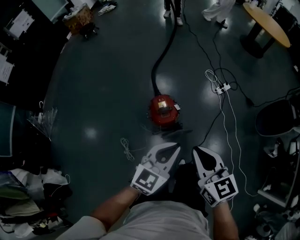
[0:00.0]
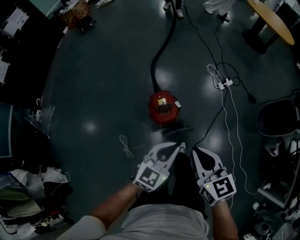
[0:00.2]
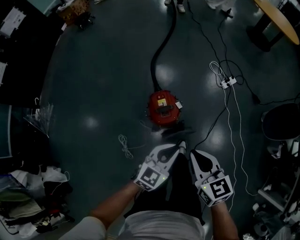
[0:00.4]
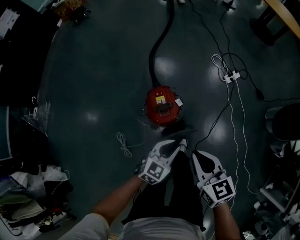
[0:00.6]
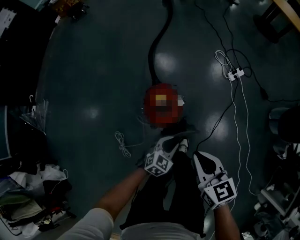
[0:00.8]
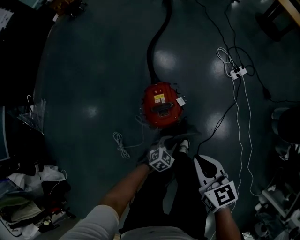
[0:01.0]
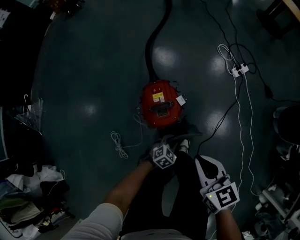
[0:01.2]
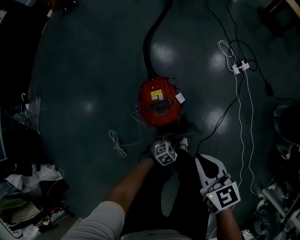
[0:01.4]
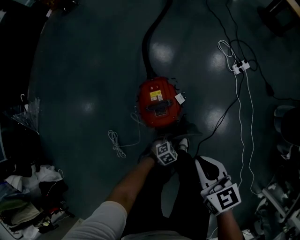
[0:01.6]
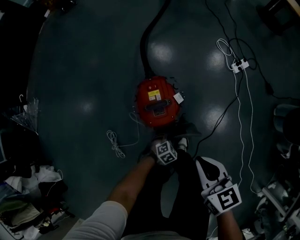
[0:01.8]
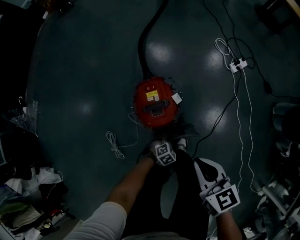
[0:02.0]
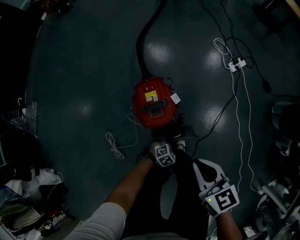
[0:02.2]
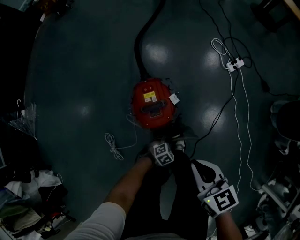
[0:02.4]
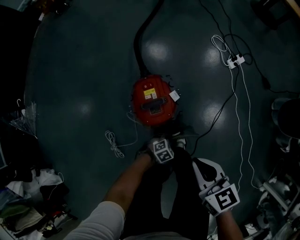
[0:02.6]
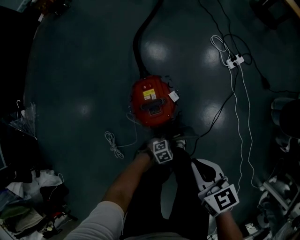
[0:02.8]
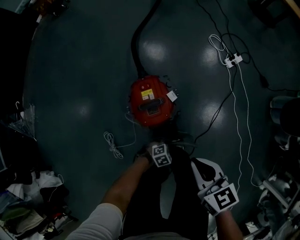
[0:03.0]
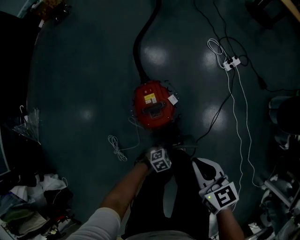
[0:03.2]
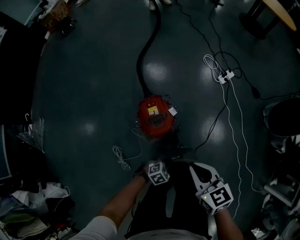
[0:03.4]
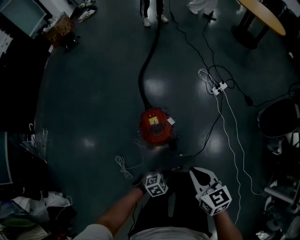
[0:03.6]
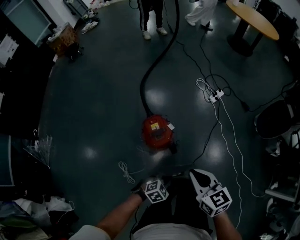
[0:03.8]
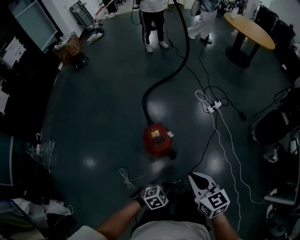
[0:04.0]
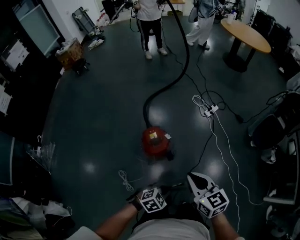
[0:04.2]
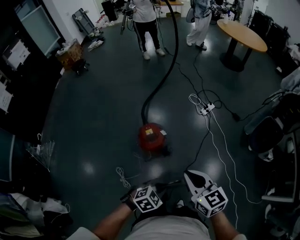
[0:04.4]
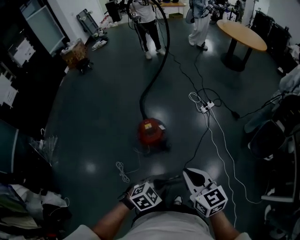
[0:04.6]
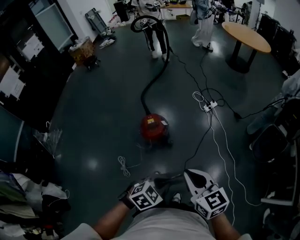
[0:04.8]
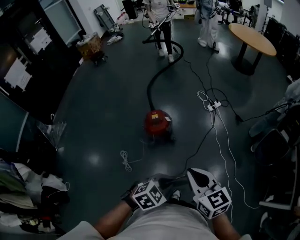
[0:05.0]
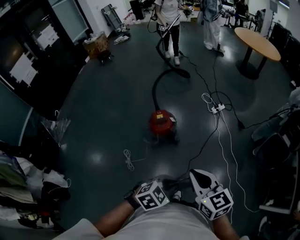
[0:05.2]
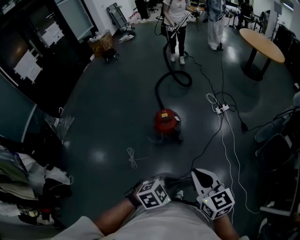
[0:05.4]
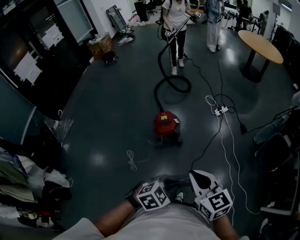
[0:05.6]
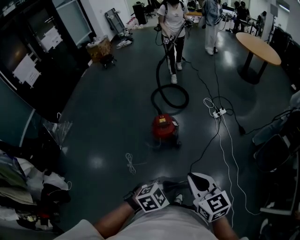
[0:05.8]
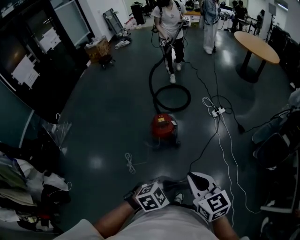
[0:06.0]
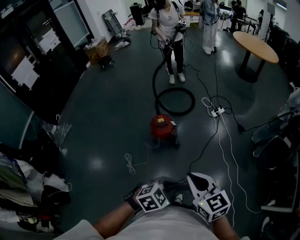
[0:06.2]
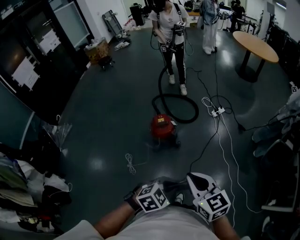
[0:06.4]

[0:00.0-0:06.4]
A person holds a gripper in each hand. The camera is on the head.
0:00.0 to 0:01.6: The right gripper is displaced downward by about 30 cm; the left gripper shifts approximately 60 cm downward, angles its fingers downward, by some 50 degrees, and opens its fingers.
0:01.6 to 0:03.2: The left gripper shifts approximately 5 cm upward.
0:03.2 to 0:04.8: The right gripper is displaced upward by roughly 35 cm; the left gripper moves upward, roughly 50 cm.
0:04.8 to 0:06.4: The two grippers go approximately 10 cm backward.

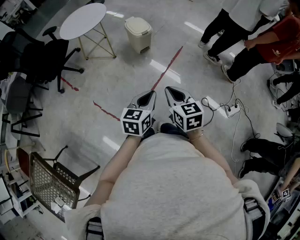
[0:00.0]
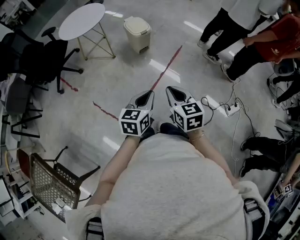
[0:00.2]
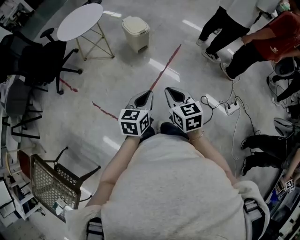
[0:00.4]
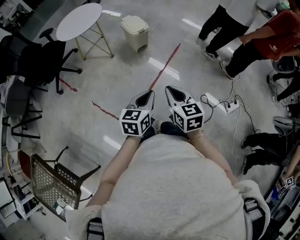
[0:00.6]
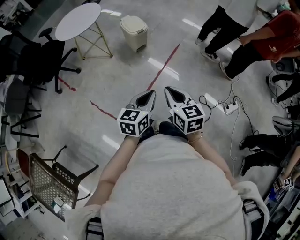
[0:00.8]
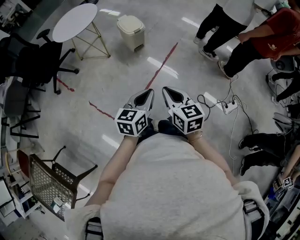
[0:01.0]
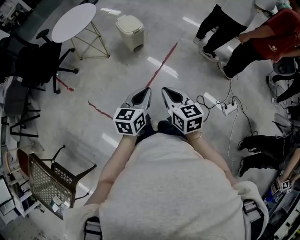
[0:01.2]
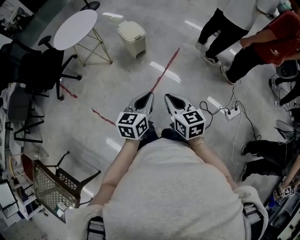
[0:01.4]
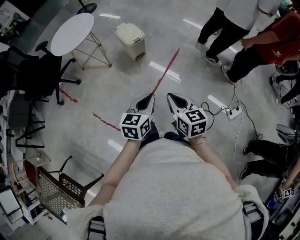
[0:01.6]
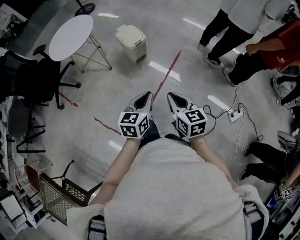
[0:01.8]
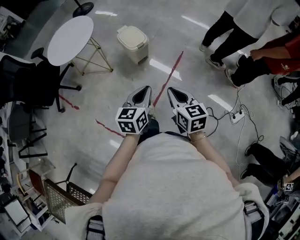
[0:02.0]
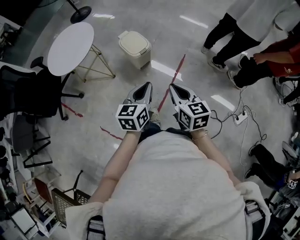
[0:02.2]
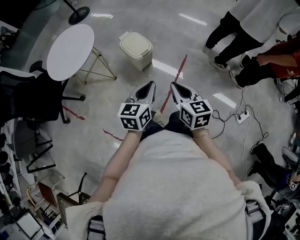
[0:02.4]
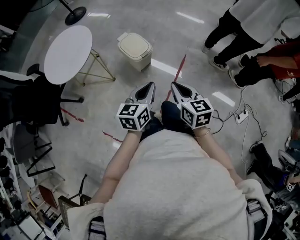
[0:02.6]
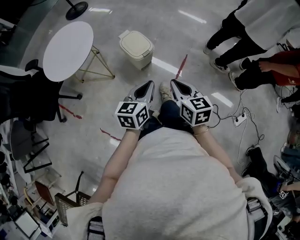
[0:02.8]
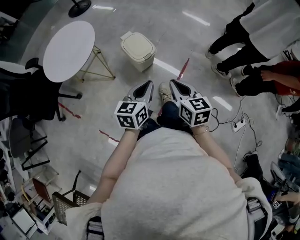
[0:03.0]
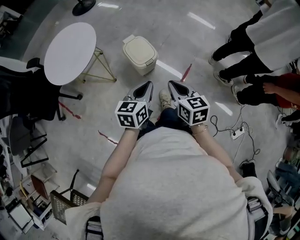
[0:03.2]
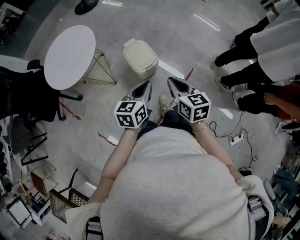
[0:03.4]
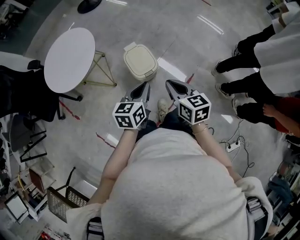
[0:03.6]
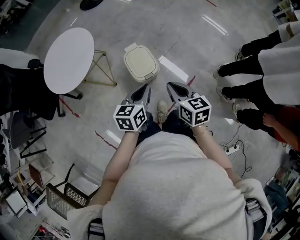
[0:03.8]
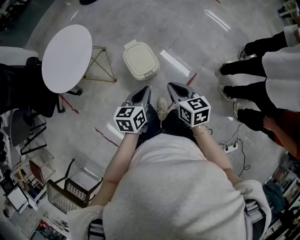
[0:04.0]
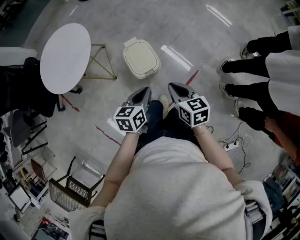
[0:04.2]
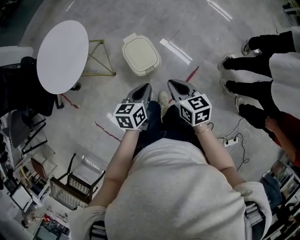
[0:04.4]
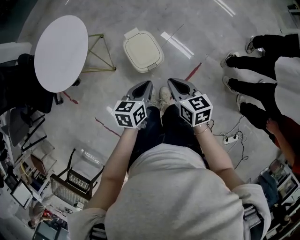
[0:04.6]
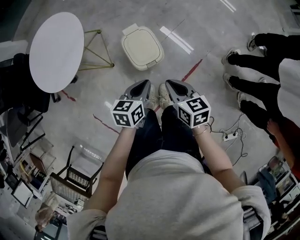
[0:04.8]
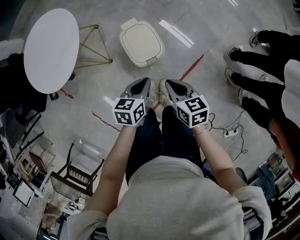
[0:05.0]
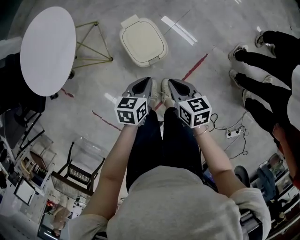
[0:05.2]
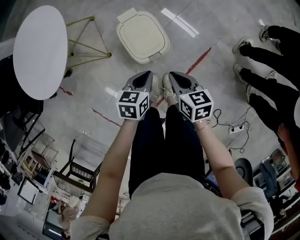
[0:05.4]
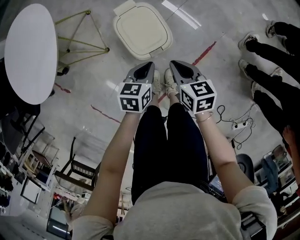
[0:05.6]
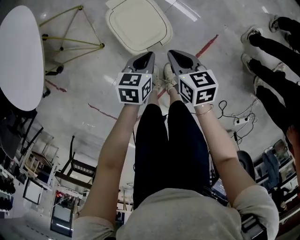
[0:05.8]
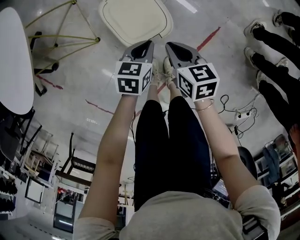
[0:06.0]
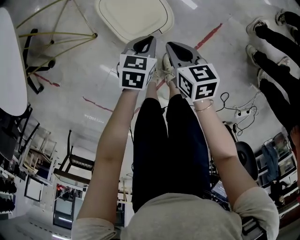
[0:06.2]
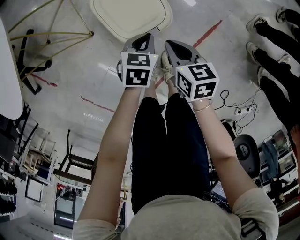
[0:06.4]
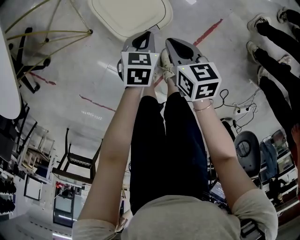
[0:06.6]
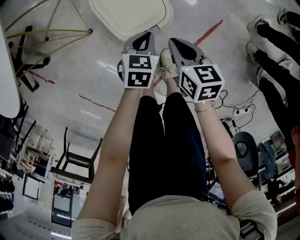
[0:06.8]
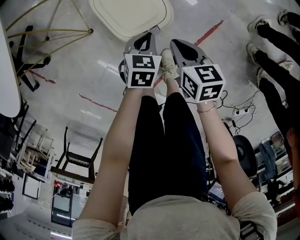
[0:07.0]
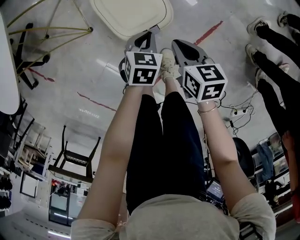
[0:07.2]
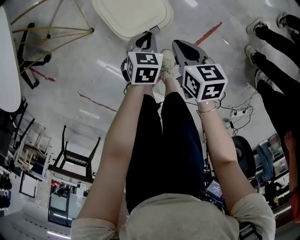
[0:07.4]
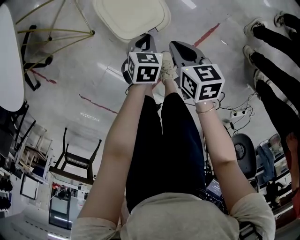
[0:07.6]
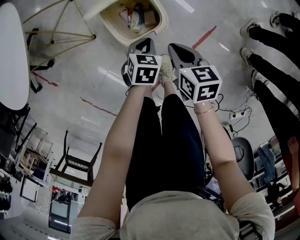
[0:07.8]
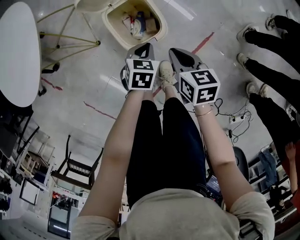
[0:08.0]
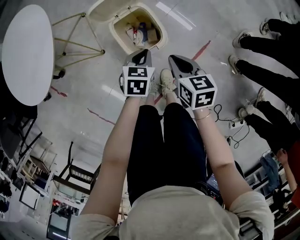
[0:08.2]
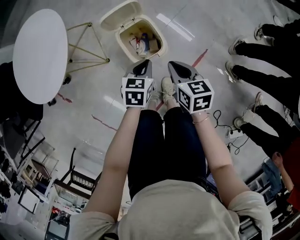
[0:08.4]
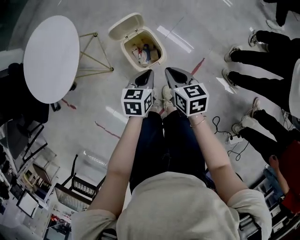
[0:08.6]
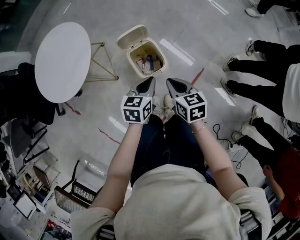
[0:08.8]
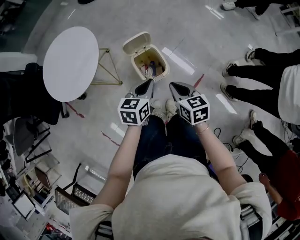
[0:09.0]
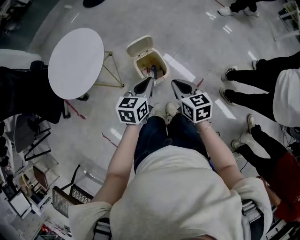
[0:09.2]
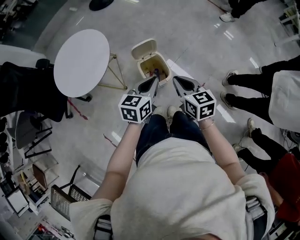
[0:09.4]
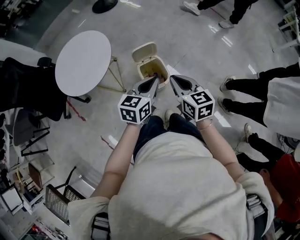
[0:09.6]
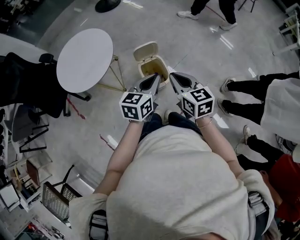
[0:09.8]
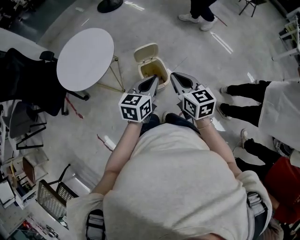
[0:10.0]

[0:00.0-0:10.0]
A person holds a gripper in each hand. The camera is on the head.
0:00.0 to 0:01.4: The left gripper travels forward and to the right by roughly 10 cm. The right gripper goes roughly 5 cm to the right.
0:01.4 to 0:02.8: The two grippers go some 35 cm forward.
0:02.8 to 0:04.2: Both grippers travel together forward, some 25 cm. The left gripper rotates some 20 degrees, while the right gripper rotates roughly 20 degrees.
0:04.2 to 0:05.8: Both grippers travel together downward, roughly 30 cm.
0:05.8 to 0:07.2: The right gripper shifts some 5 cm downward; the left gripper moves downward, about 10 cm.
0:07.2 to 0:08.6: The two grippers go some 25 cm upward.
0:08.6 to 0:10.0: The grippers both shift upward by about 25 cm. The right gripper turns by approximately 20 degrees. The left gripper swivels about 20 degrees.

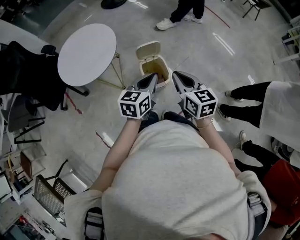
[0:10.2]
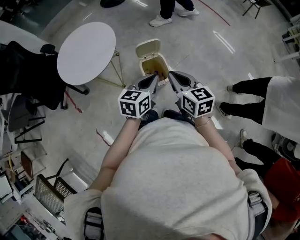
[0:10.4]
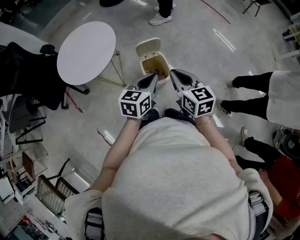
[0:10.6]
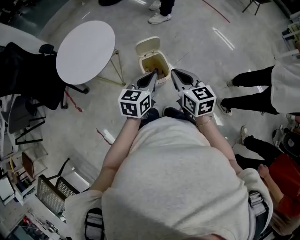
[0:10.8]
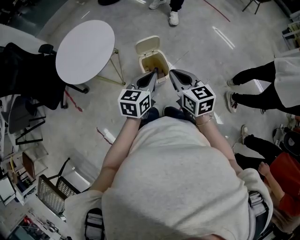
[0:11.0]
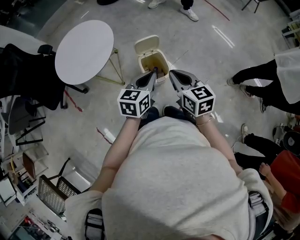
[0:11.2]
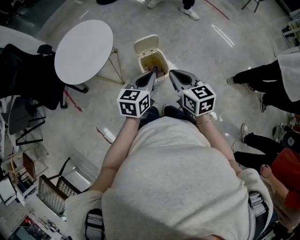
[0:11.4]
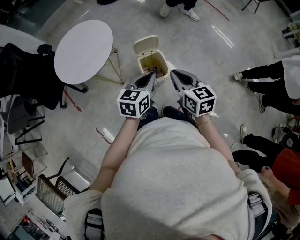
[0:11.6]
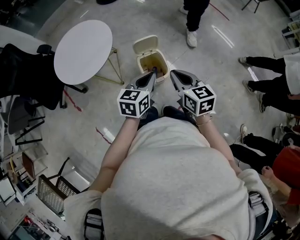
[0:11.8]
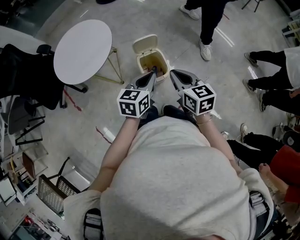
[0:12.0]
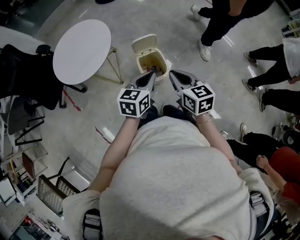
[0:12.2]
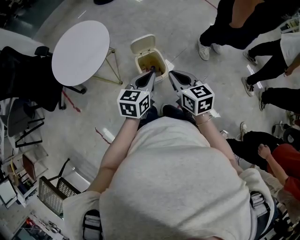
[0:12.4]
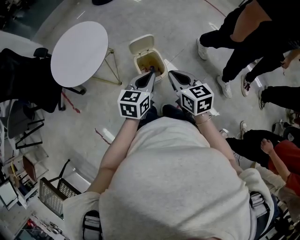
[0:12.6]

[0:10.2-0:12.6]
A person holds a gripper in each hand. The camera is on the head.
0:10.2 to 0:12.6: There are only small adjustments of the grippers.

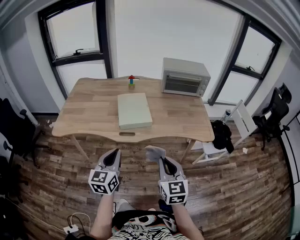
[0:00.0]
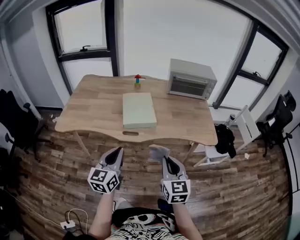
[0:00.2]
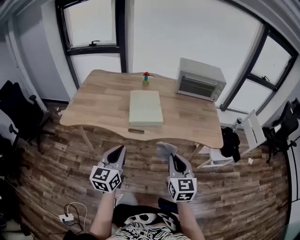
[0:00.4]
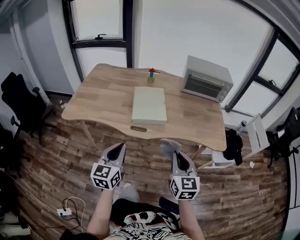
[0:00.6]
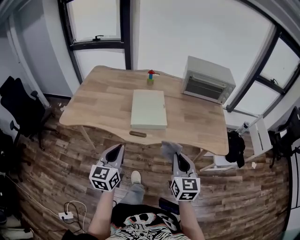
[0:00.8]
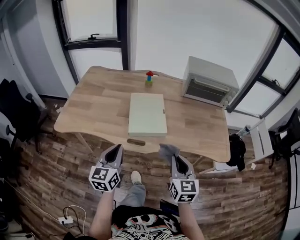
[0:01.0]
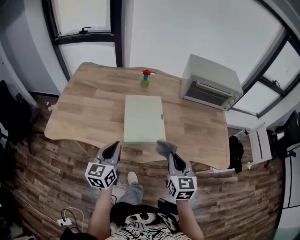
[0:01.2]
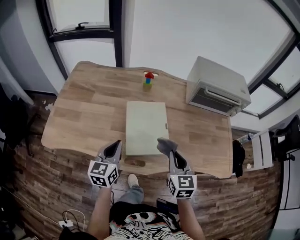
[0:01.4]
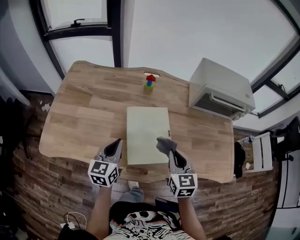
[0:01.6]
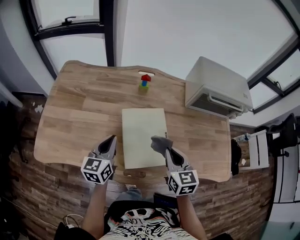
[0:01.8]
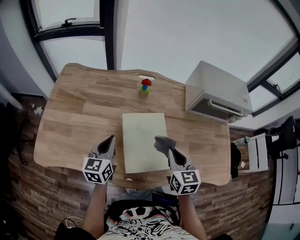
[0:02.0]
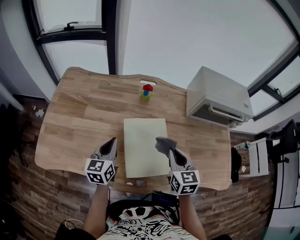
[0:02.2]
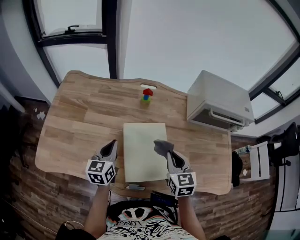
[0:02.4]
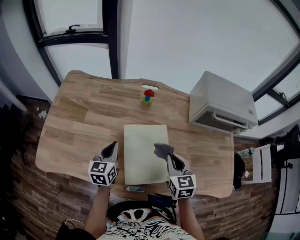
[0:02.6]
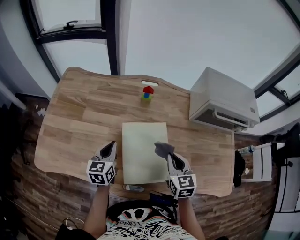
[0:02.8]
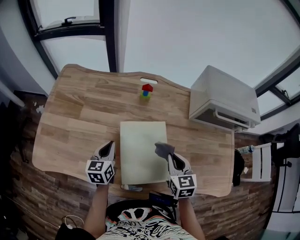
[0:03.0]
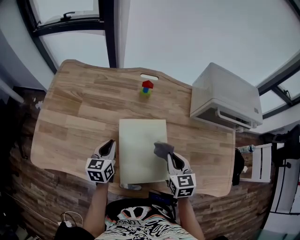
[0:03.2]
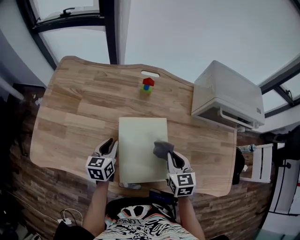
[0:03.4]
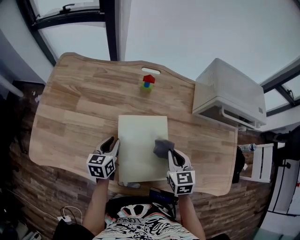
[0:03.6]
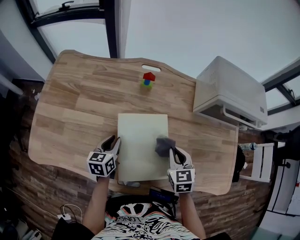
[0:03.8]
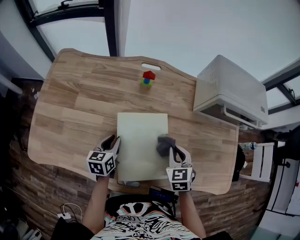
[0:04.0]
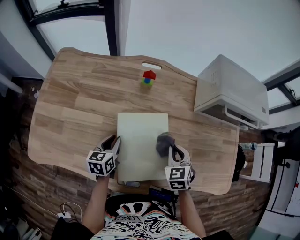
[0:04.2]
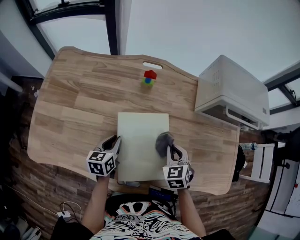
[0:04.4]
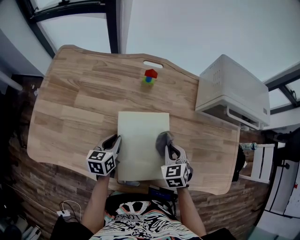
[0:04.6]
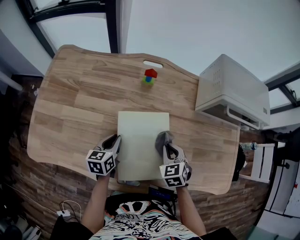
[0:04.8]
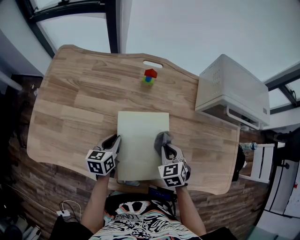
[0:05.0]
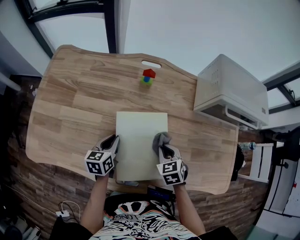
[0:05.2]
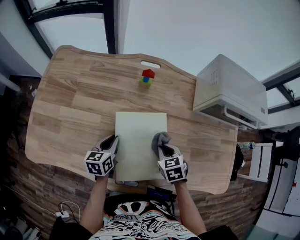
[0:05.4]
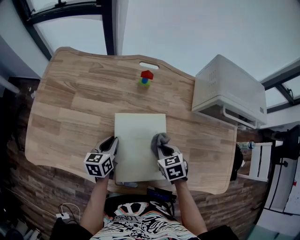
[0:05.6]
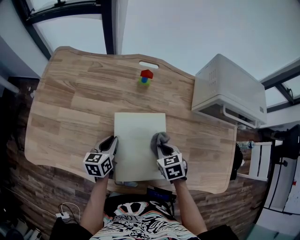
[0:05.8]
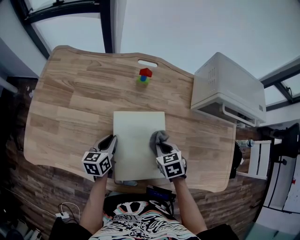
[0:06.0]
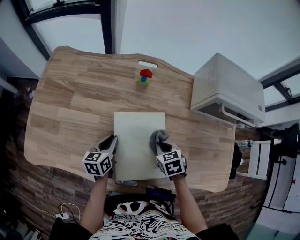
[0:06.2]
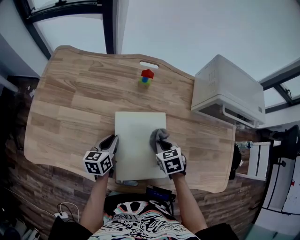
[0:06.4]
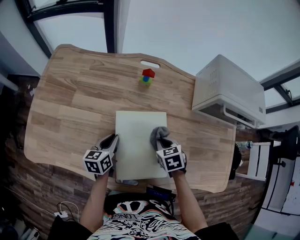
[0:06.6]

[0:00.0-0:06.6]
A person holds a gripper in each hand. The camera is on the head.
0:00.0 to 0:01.6: The grippers both shift forward by about 40 cm.
0:01.6 to 0:03.2: Both grippers travel together forward and downward, approximately 15 cm.
0:03.2 to 0:05.0: The left gripper heads downward, covering approximately 5 cm. Meanwhile the right gripper is displaced downward by roughly 10 cm, and changes its angle by approximately 30 degrees.
0:05.0 to 0:06.6: The grippers make only small movements.
